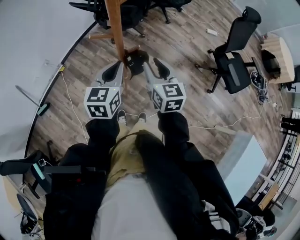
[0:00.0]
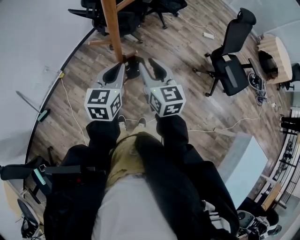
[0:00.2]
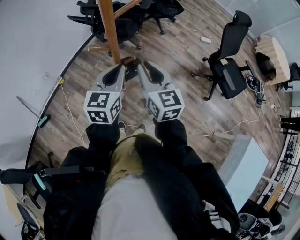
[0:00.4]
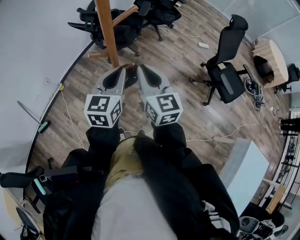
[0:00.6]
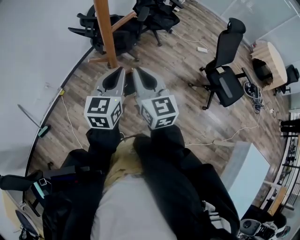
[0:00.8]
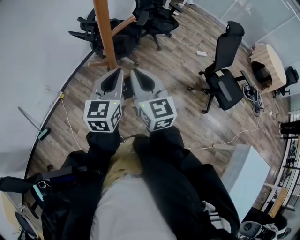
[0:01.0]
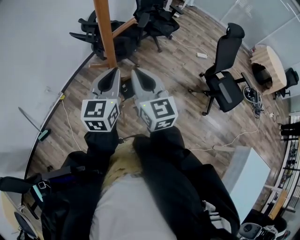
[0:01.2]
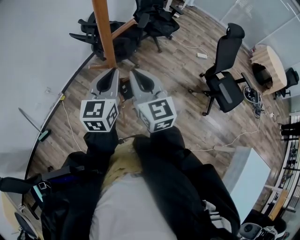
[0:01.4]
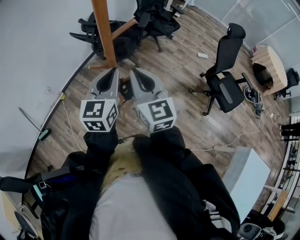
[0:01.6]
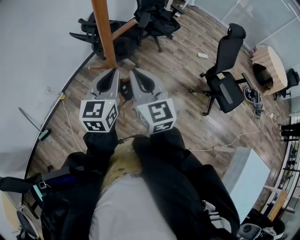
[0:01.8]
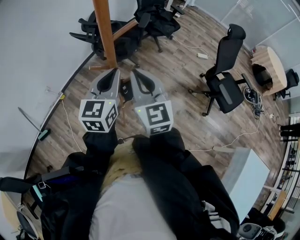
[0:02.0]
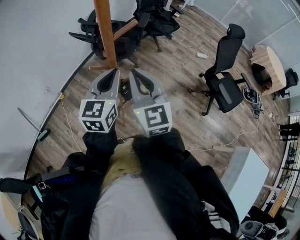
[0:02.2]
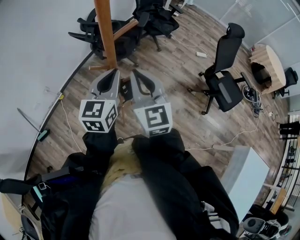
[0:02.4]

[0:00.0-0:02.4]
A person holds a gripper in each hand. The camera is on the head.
0.0 to 1.2 s: Both grippers move upward, about 15 cm. The right gripper closes.
1.2 to 2.4 s: The grippers make only small movements.

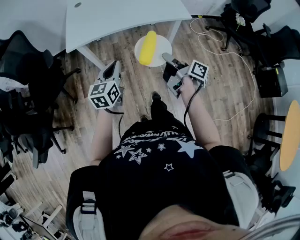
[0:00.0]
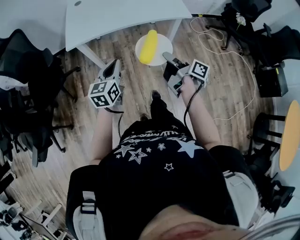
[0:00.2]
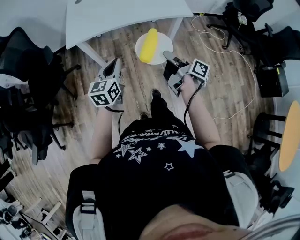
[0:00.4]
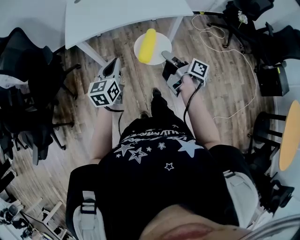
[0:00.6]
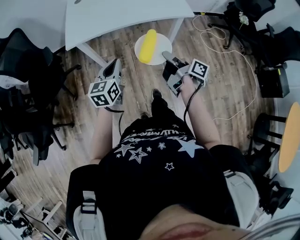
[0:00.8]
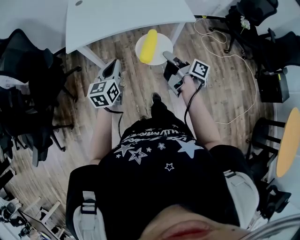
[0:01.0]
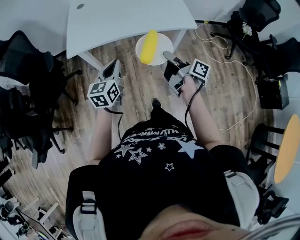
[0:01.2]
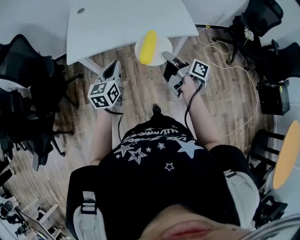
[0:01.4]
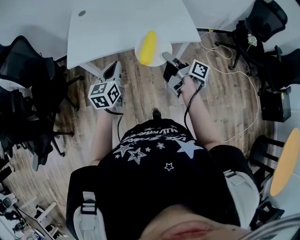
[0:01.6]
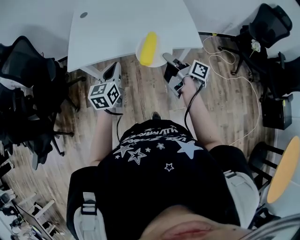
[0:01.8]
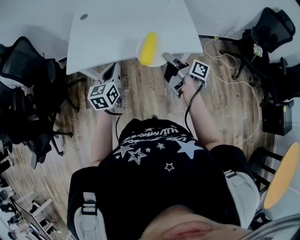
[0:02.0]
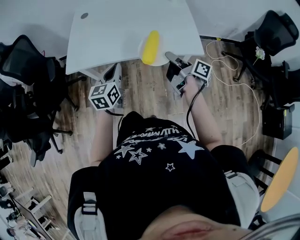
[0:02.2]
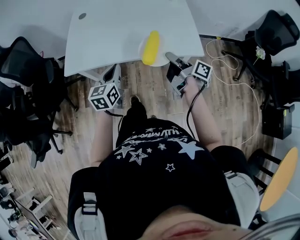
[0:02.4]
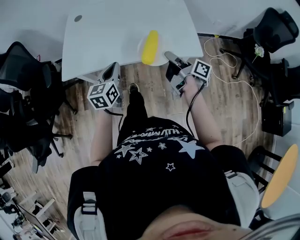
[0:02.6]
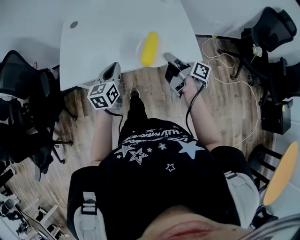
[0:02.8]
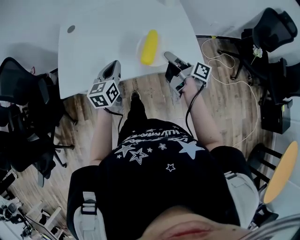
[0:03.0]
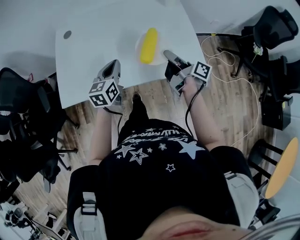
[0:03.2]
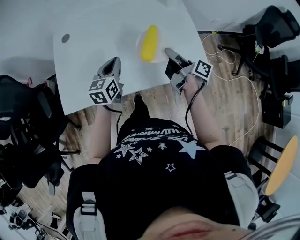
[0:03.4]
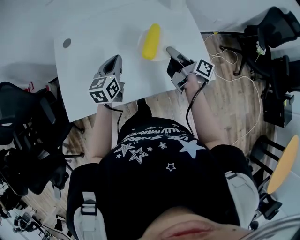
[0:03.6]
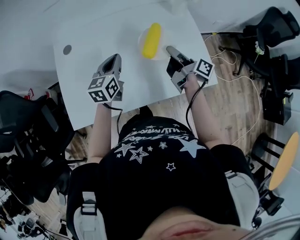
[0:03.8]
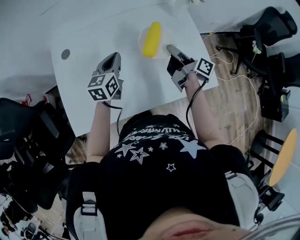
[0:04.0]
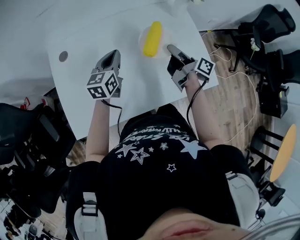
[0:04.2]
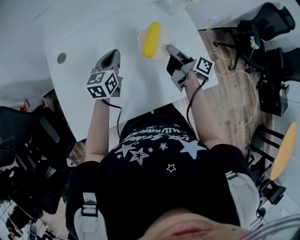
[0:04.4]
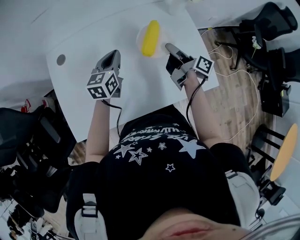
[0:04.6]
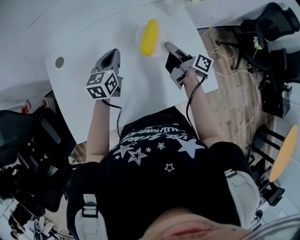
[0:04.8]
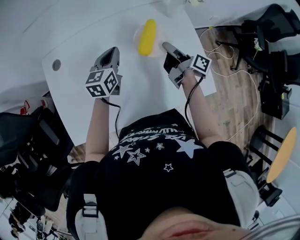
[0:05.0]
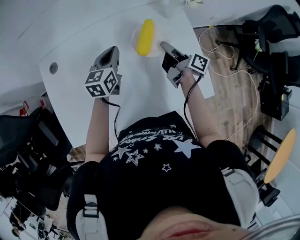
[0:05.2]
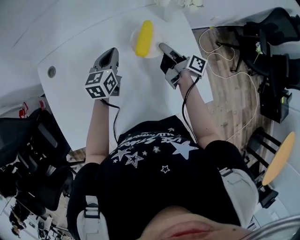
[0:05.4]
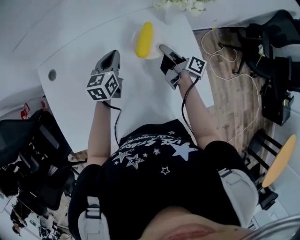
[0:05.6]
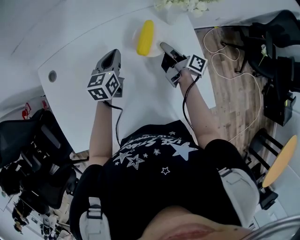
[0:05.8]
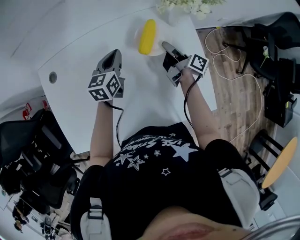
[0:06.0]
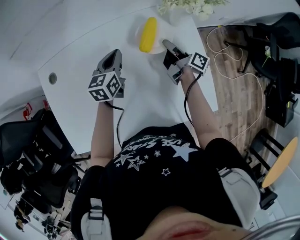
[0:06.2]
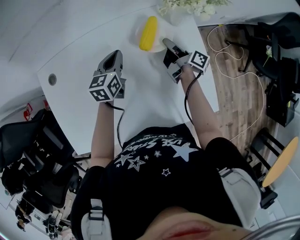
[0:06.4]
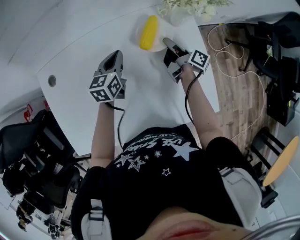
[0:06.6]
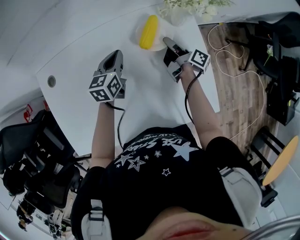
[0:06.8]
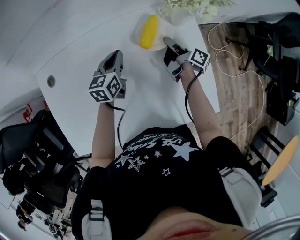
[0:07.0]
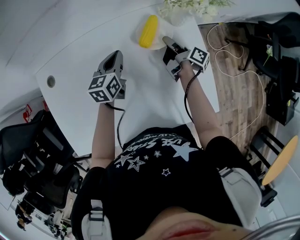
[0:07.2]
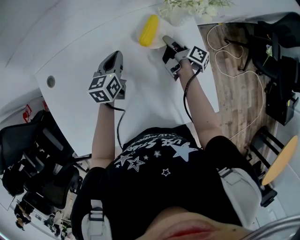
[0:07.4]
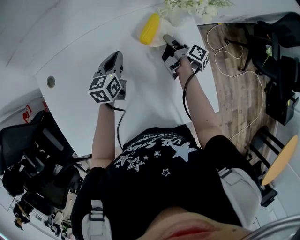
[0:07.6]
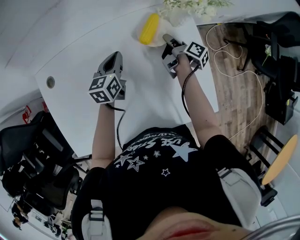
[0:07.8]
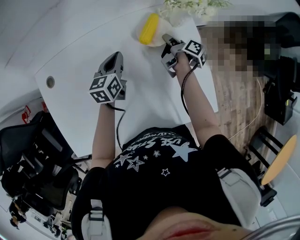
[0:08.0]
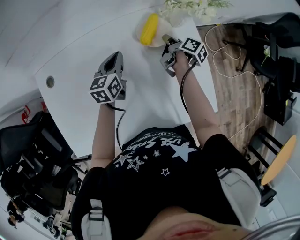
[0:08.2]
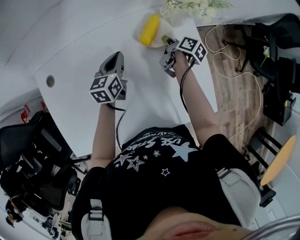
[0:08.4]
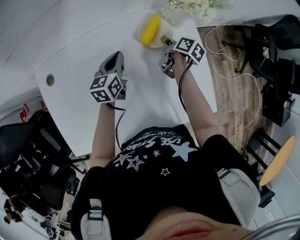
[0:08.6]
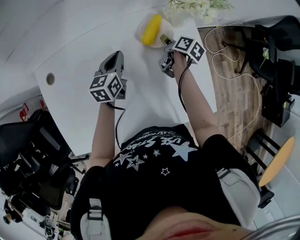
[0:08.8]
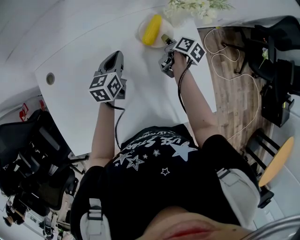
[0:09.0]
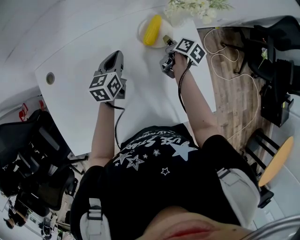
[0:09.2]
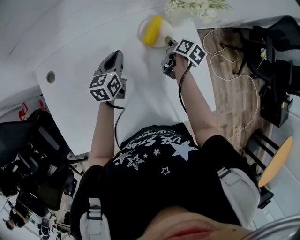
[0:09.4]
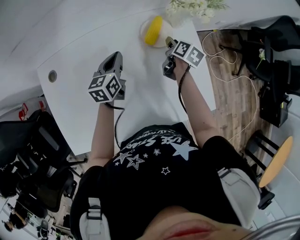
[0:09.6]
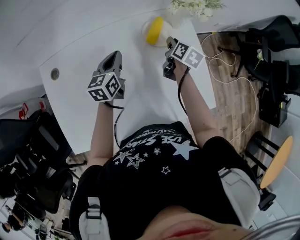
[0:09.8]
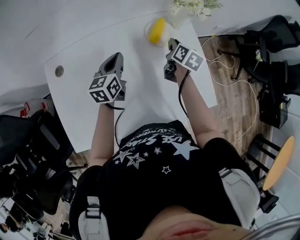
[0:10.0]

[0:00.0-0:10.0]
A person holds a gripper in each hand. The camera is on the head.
0.0 to 1.4 s: Both grippers travel together forward, about 15 cm.
1.4 to 2.8 s: Both grippers move forward and to the right, about 20 cm.
2.8 to 4.2 s: Both grippers move forward, about 30 cm.
4.2 to 5.8 s: The right gripper travels forward, downward and to the right by some 20 cm. The left gripper moves forward and to the right, roughly 15 cm.
5.8 to 7.2 s: The right gripper heads forward and downward, covering approximately 5 cm.
7.2 to 8.6 s: The right gripper swivels approximately 30 degrees.
8.6 to 10.0 s: Both grippers travel together upward and backward, roughly 10 cm. The right gripper rotates about 30 degrees.

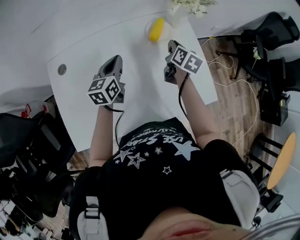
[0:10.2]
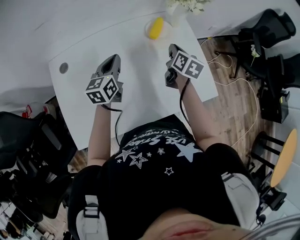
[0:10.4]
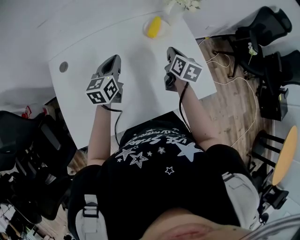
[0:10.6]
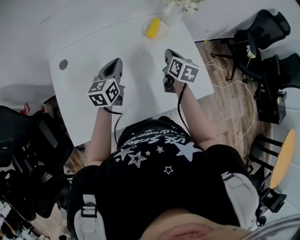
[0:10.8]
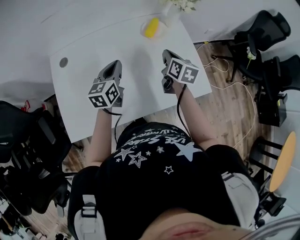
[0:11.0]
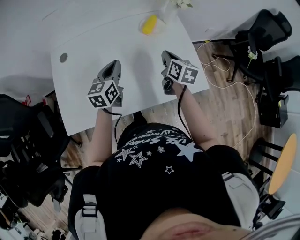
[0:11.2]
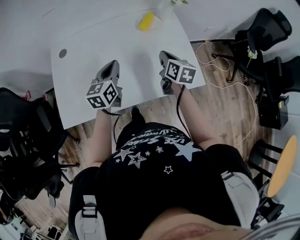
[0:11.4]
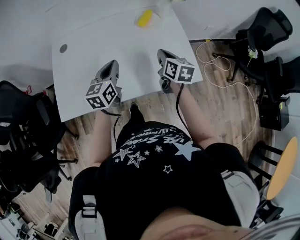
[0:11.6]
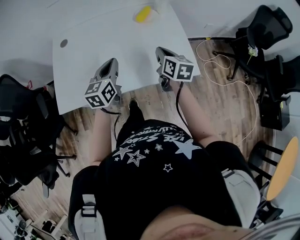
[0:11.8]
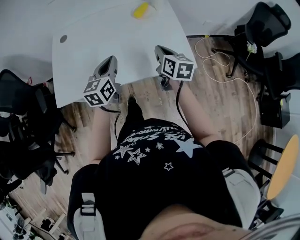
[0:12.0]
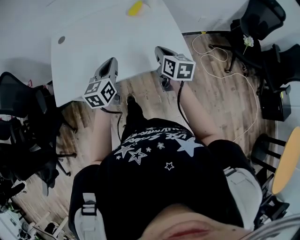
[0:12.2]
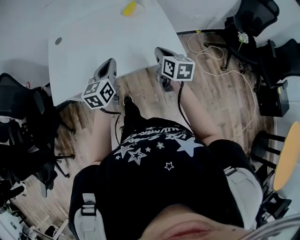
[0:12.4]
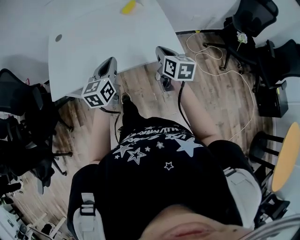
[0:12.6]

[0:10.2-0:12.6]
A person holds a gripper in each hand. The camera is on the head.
10.2 to 11.4 s: The left gripper goes roughly 20 cm backward and to the right; the right gripper goes approximately 20 cm backward.
11.4 to 12.6 s: The right gripper heads backward, covering some 20 cm, while the left gripper moves backward and to the right, some 25 cm.

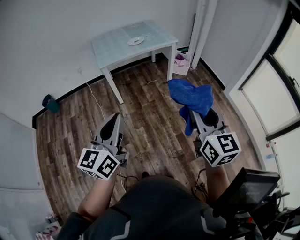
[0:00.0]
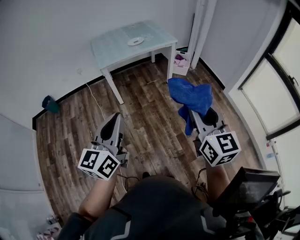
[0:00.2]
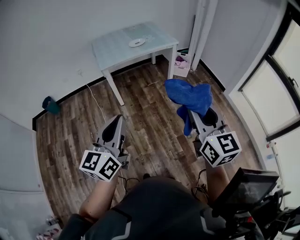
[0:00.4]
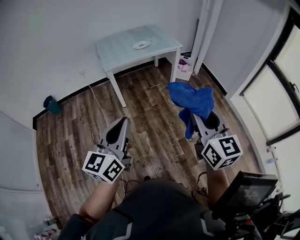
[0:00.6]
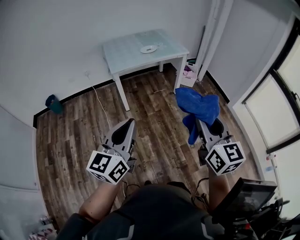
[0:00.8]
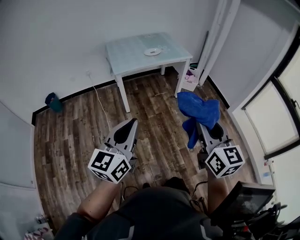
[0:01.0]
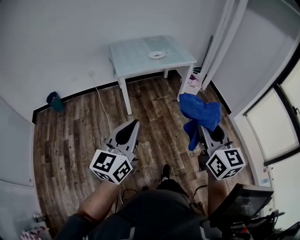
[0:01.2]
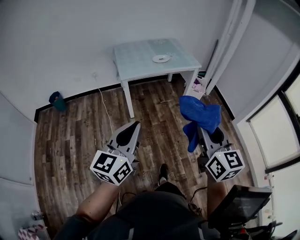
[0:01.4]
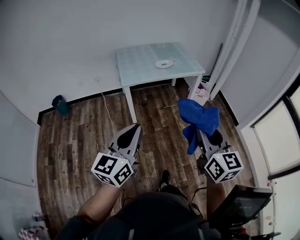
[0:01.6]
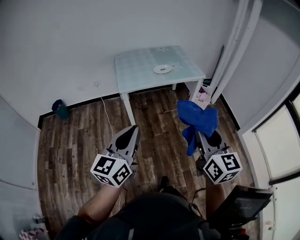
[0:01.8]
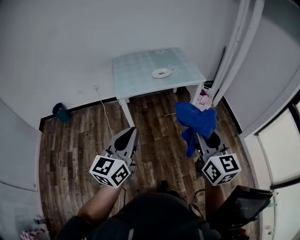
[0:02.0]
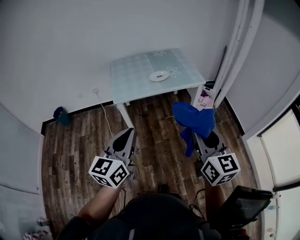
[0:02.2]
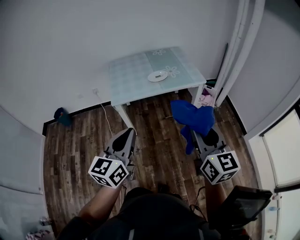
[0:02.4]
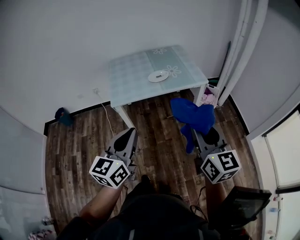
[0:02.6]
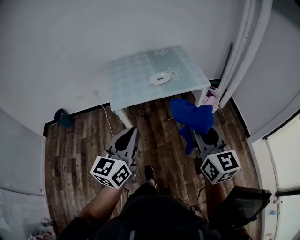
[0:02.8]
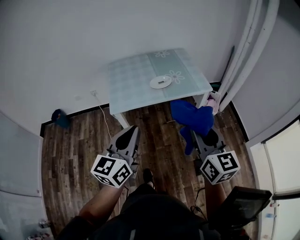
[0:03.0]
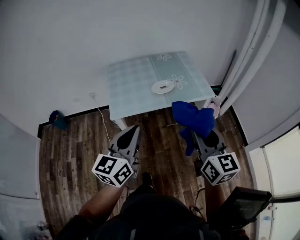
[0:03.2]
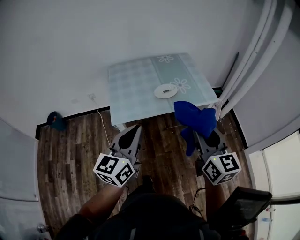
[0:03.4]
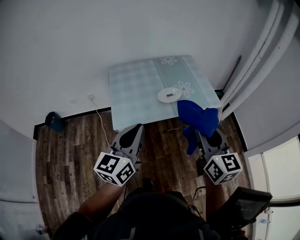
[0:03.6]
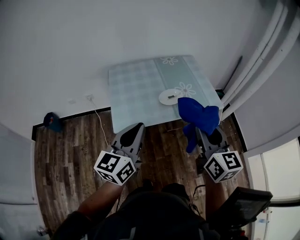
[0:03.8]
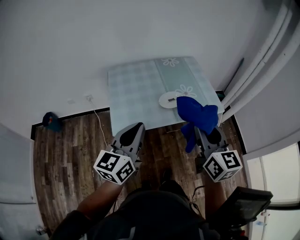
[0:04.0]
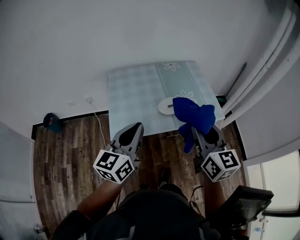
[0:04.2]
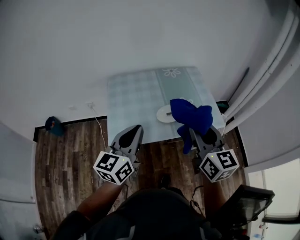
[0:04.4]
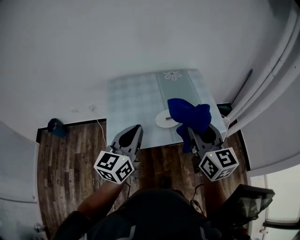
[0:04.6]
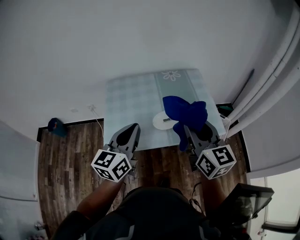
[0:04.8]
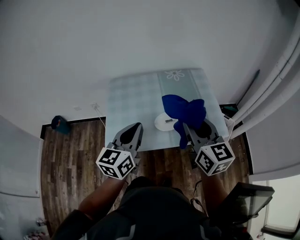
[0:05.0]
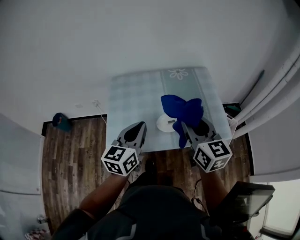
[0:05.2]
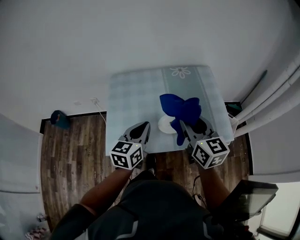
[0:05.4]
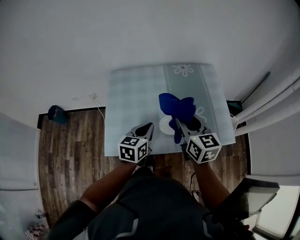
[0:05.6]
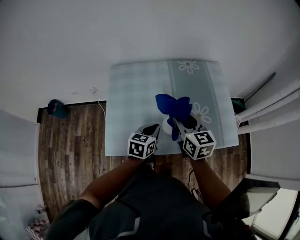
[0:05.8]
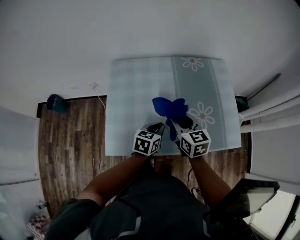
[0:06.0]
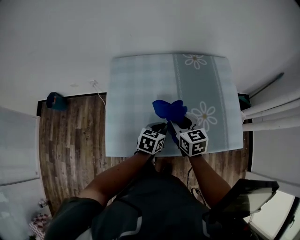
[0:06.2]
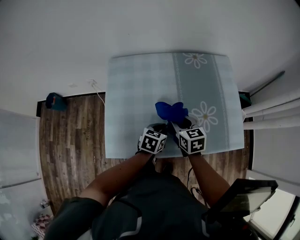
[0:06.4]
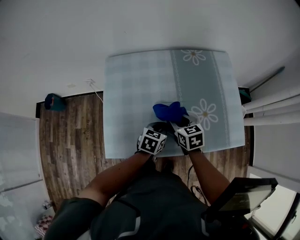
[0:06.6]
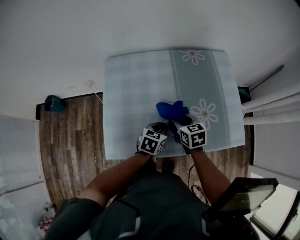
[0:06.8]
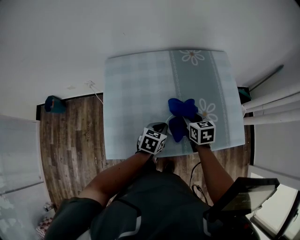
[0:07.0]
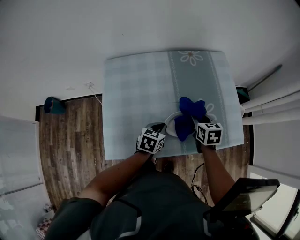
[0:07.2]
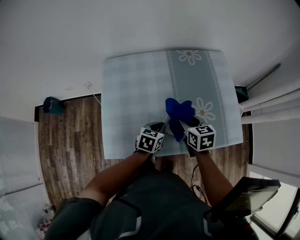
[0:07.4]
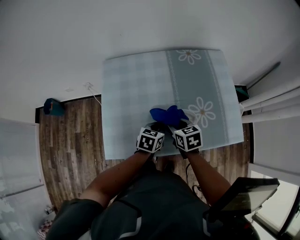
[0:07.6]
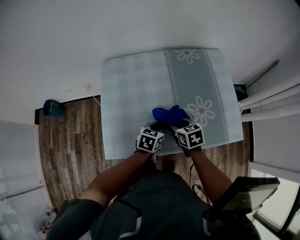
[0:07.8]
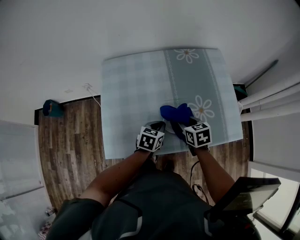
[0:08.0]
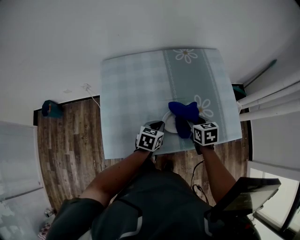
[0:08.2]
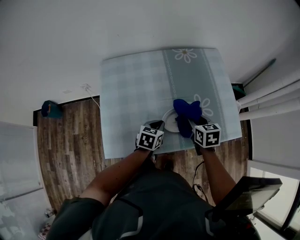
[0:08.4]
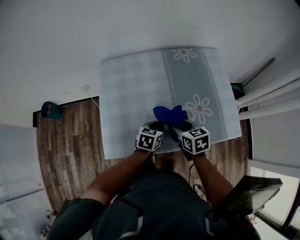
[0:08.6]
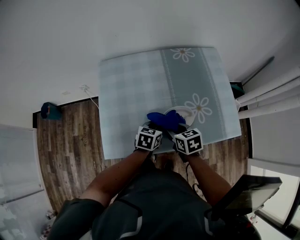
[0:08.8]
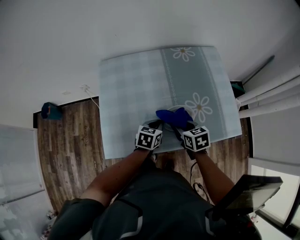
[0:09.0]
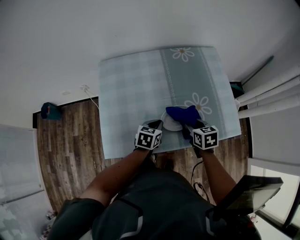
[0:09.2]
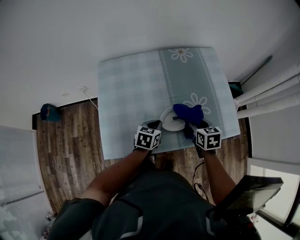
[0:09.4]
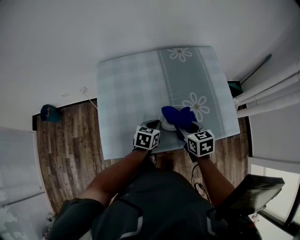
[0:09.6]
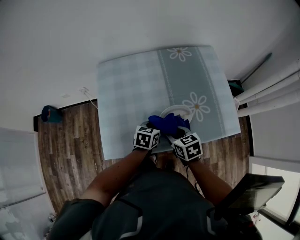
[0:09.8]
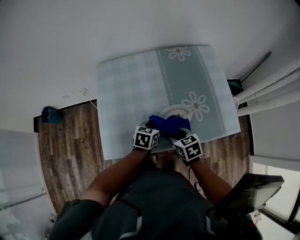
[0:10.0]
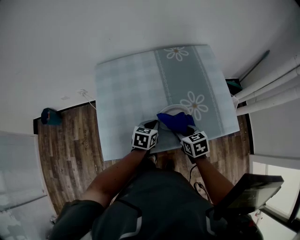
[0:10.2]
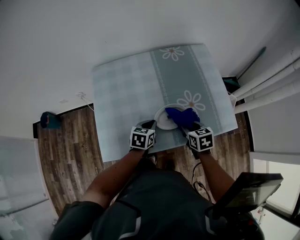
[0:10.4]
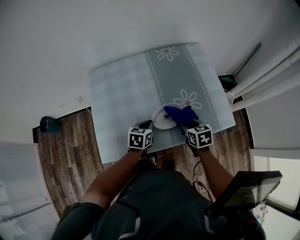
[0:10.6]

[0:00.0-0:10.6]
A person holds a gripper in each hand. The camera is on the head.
0.0 to 1.6 s: The two grippers go some 15 cm forward and to the left.
1.6 to 3.0 s: The grippers both shift forward by approximately 30 cm.
3.0 to 4.6 s: Both grippers travel together forward, some 30 cm.
4.6 to 6.0 s: The right gripper travels downward, forward and to the left by approximately 30 cm, and turns by some 20 degrees; the left gripper is displaced downward and forward by approximately 35 cm, and tilts its fingers approximately 30 degrees downward.
6.0 to 7.6 s: The right gripper heads downward, covering approximately 10 cm, goes to the right and returns, about 10 cm each way, and changes its angle by roughly 20 degrees.
7.6 to 9.0 s: The right gripper moves left and right over roughly 10 cm, changing direction 2 times.
9.0 to 10.6 s: The right gripper moves left and right over roughly 10 cm, changing direction 2 times.
